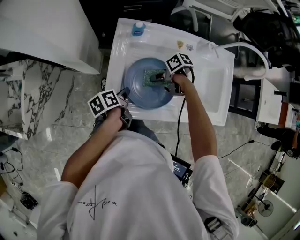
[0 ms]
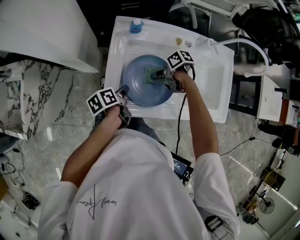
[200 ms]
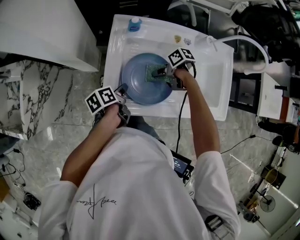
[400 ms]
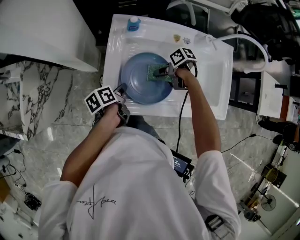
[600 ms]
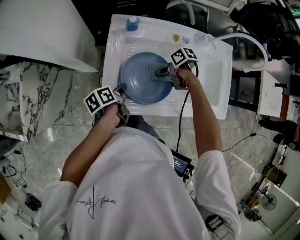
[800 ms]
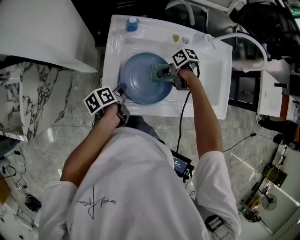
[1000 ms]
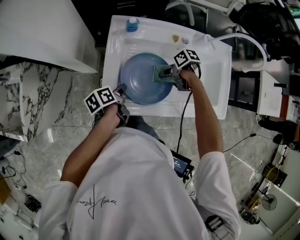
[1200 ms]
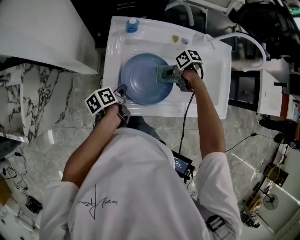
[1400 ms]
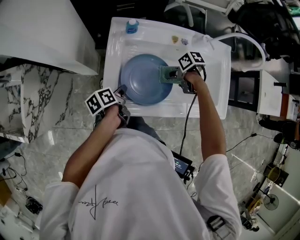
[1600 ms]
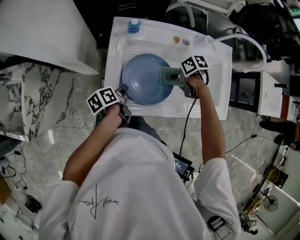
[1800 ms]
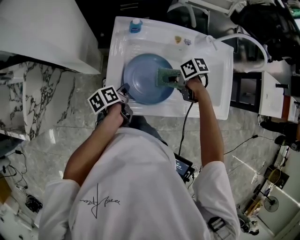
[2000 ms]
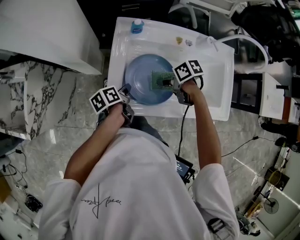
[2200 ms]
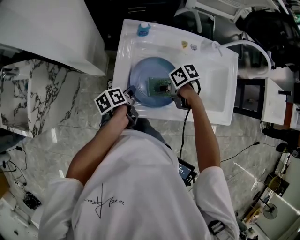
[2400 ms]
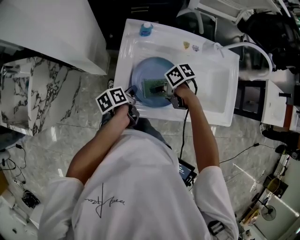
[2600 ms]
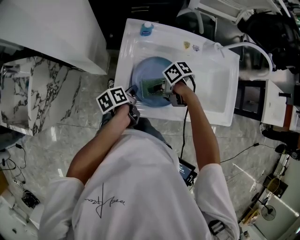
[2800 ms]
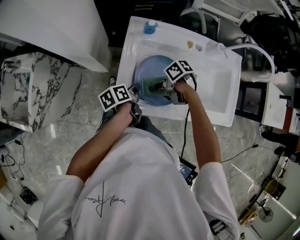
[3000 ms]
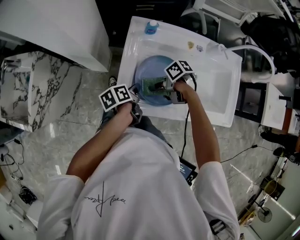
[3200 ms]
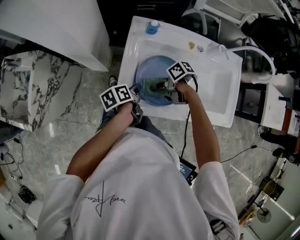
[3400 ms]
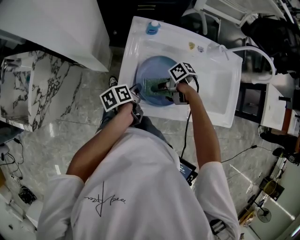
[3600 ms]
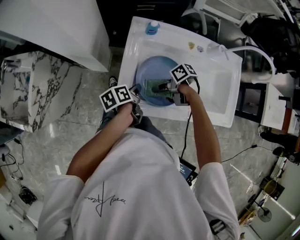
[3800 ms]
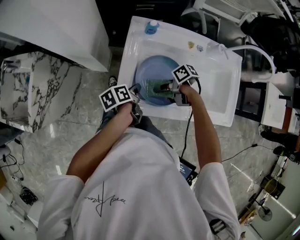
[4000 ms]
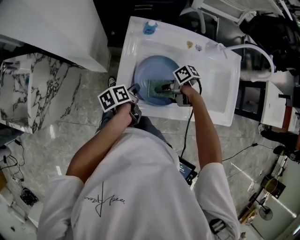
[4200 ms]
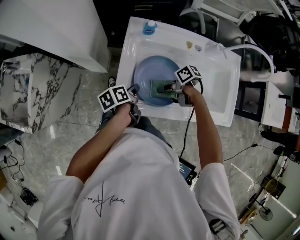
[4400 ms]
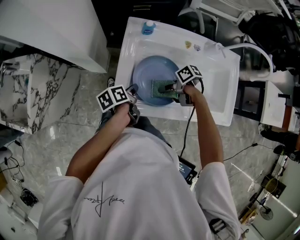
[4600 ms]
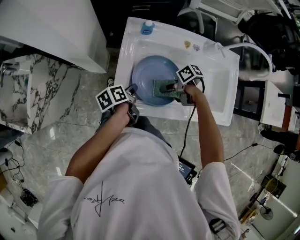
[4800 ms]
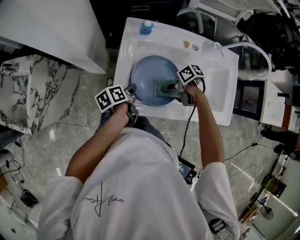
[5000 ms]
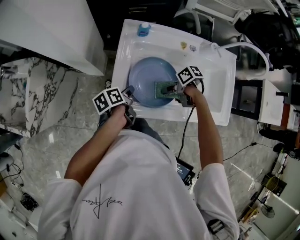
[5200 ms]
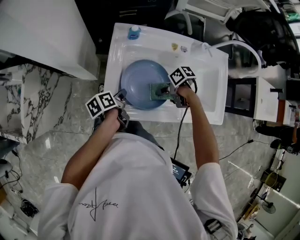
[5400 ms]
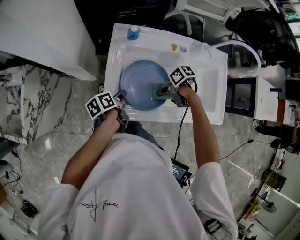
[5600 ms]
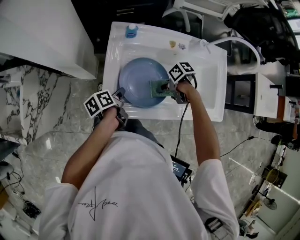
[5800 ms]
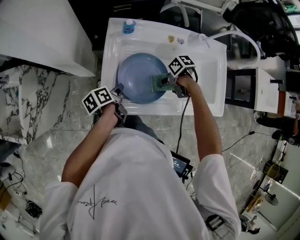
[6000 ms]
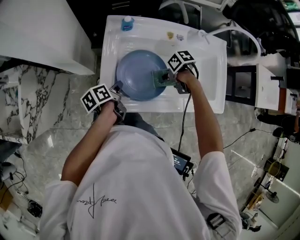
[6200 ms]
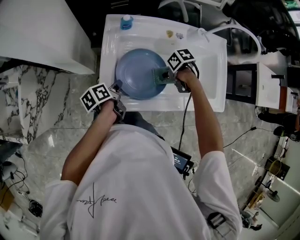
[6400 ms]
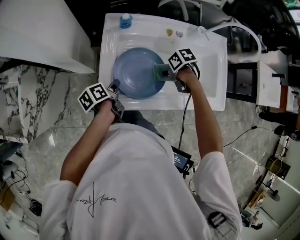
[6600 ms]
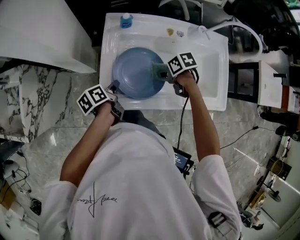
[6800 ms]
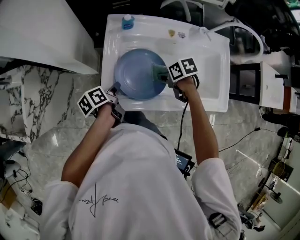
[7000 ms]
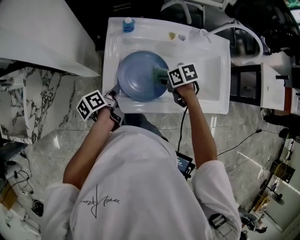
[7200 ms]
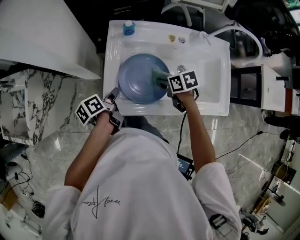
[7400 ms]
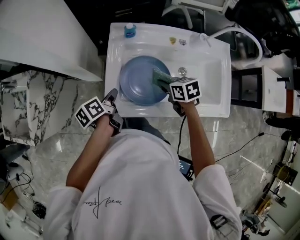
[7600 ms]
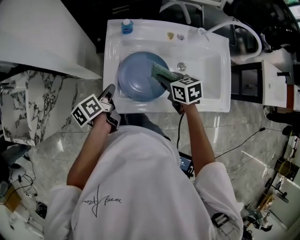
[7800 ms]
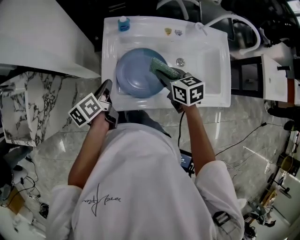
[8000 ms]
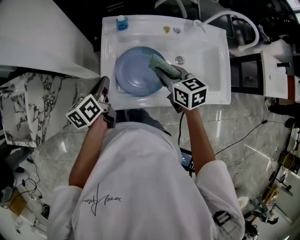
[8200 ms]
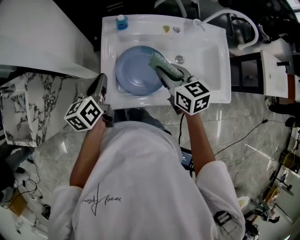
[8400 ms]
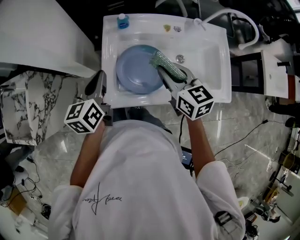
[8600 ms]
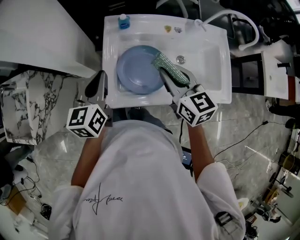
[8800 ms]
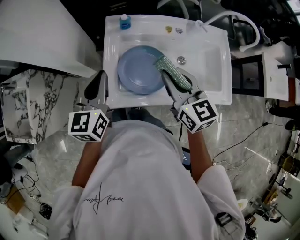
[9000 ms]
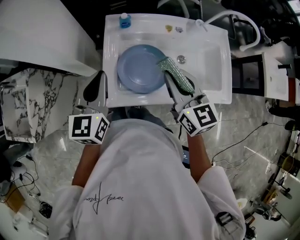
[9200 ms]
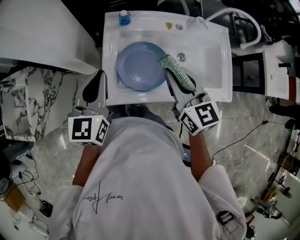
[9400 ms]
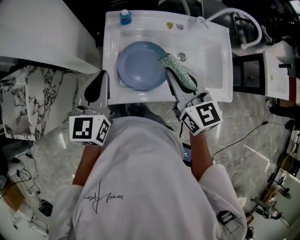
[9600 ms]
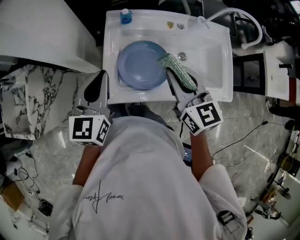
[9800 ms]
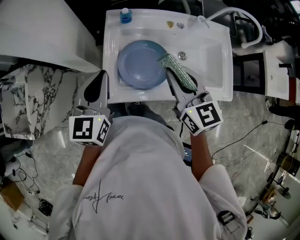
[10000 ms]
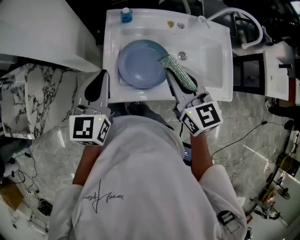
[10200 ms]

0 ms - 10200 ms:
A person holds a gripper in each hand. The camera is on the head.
0 ms - 1400 ms: The right gripper moves roughly 10 cm.
1400 ms - 3000 ms: The right gripper ends up approximately 15 cm from where it was.
3000 ms - 4400 ms: The grippers stay close to where they were, moving slightly.
4400 ms - 5800 ms: The right gripper moves approximately 5 cm.
5800 ms - 7200 ms: The right gripper changes its angle by some 30 degrees.
7200 ms - 8800 ms: Both grippers move upward, roughly 20 cm. The left gripper twists approximately 50 degrees clockwise, seen from behind. The right gripper points its fingers about 40 degrees further upward.
8800 ms - 10200 ms: There are only small adjustments of the grippers.

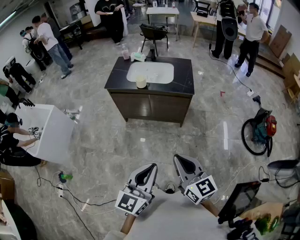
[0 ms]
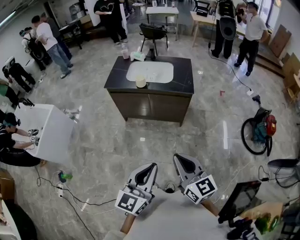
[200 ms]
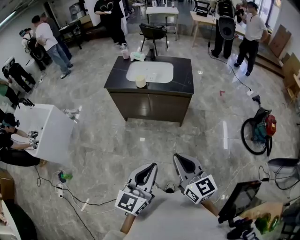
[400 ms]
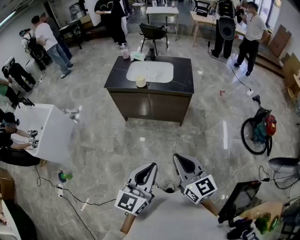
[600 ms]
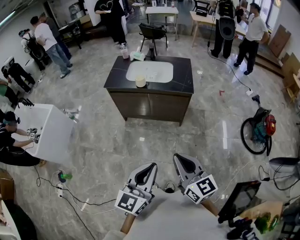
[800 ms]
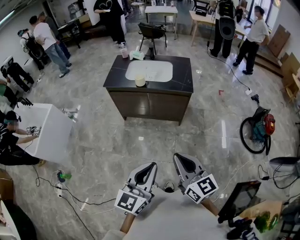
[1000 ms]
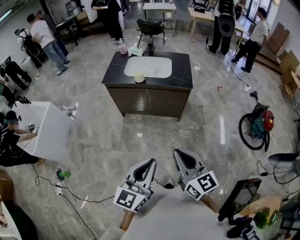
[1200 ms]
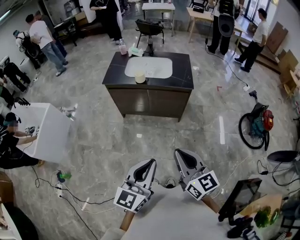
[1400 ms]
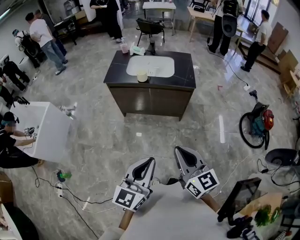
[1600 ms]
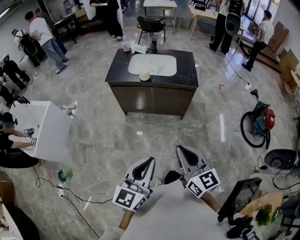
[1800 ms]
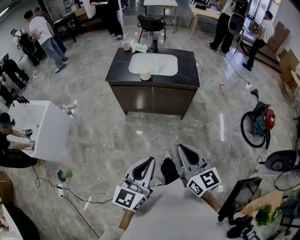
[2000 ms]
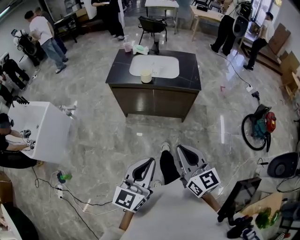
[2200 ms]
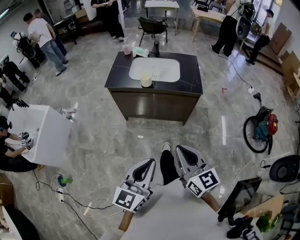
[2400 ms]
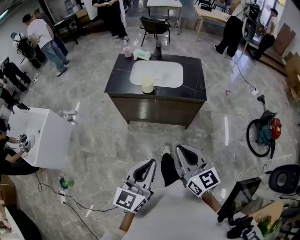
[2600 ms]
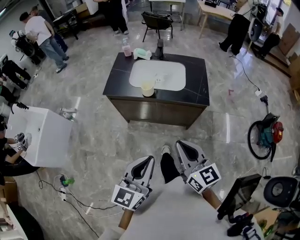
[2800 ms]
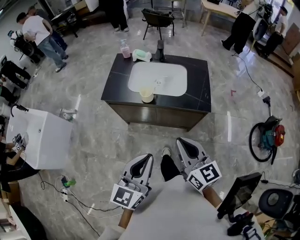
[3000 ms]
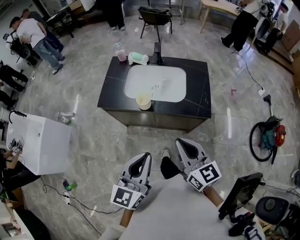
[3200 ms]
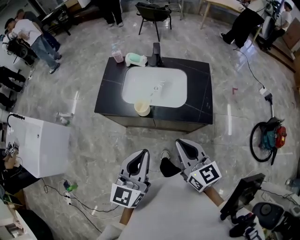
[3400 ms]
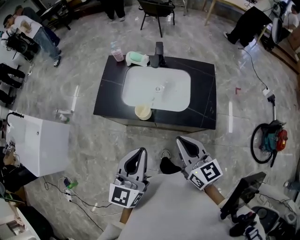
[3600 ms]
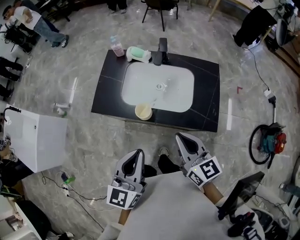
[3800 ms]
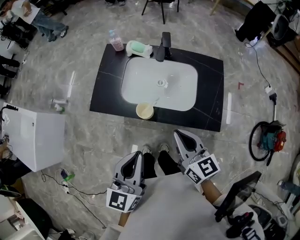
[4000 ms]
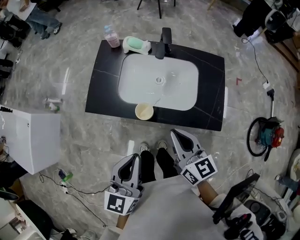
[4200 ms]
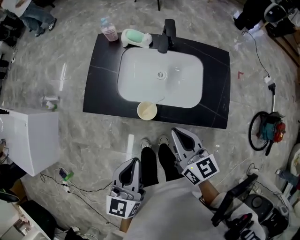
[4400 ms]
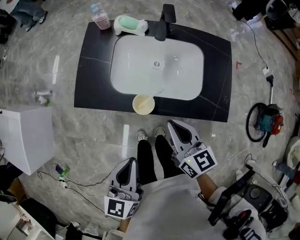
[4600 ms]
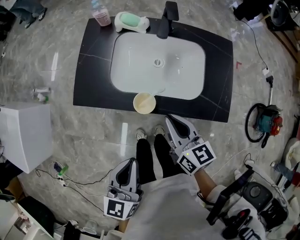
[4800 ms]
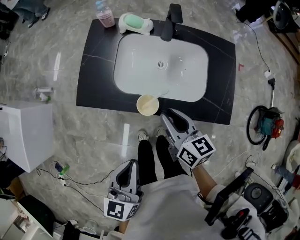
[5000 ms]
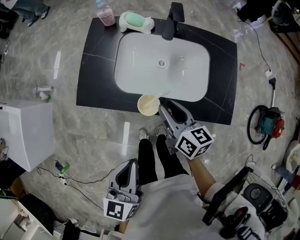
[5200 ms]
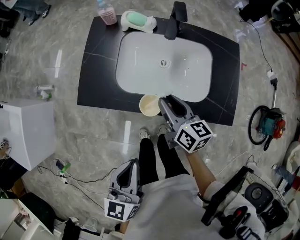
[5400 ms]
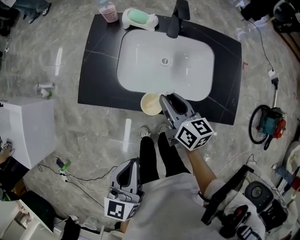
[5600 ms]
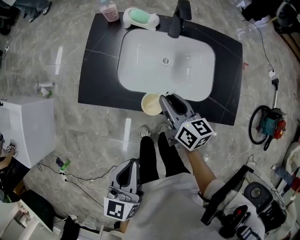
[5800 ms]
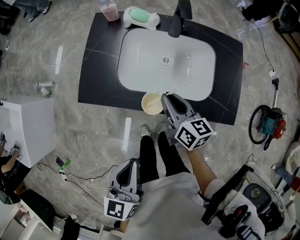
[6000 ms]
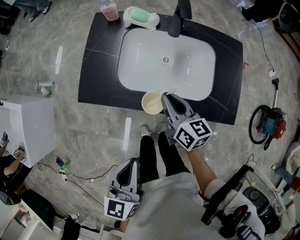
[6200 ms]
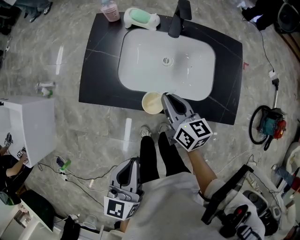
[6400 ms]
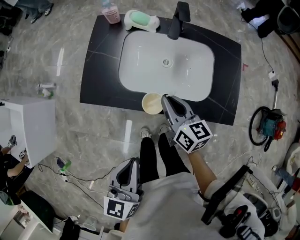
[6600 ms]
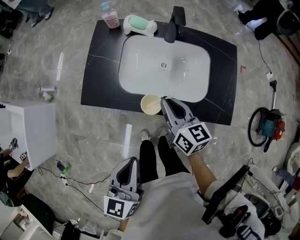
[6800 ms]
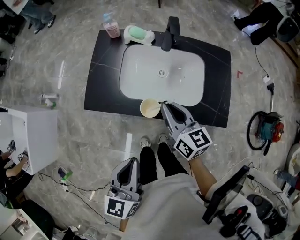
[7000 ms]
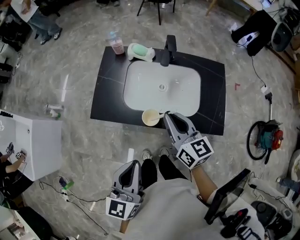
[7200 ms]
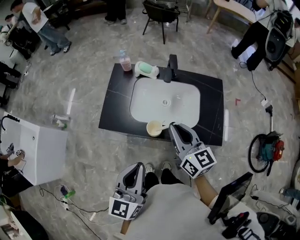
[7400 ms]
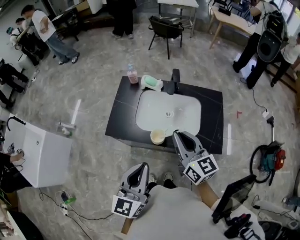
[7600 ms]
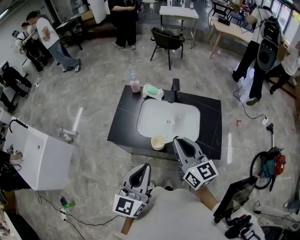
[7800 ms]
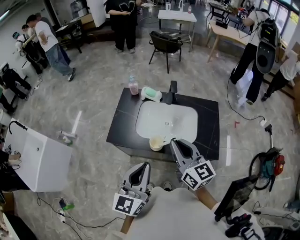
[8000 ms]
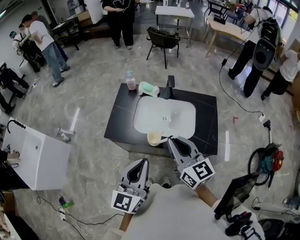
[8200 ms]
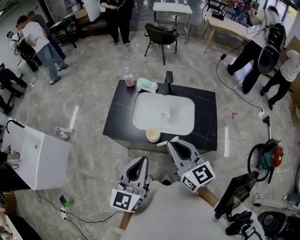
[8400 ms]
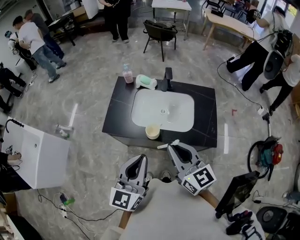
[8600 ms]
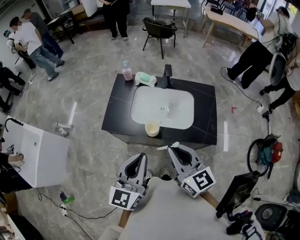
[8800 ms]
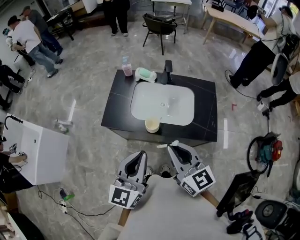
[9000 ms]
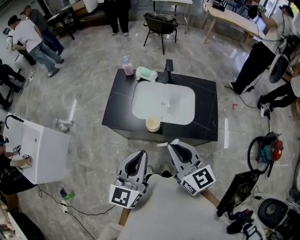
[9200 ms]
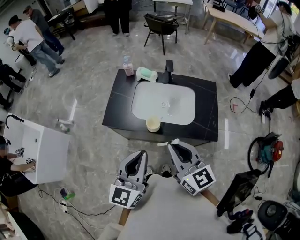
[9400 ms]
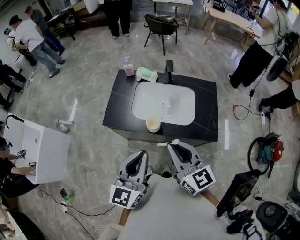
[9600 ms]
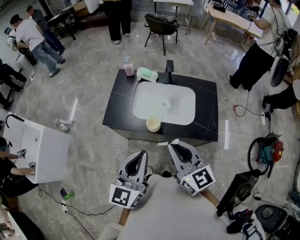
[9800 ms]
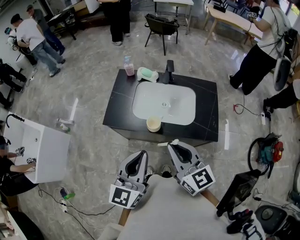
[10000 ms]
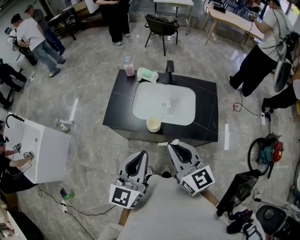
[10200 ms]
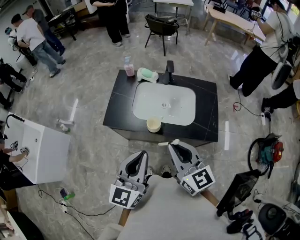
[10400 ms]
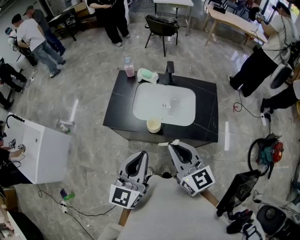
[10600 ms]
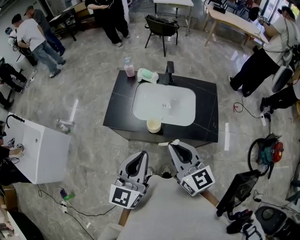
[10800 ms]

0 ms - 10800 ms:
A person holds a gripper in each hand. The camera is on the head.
0 ms - 1600 ms: The grippers stay close to where they were, moving slightly.
1600 ms - 3000 ms: Both grippers travel together forward, roughly 25 cm.
3000 ms - 4600 ms: Both grippers travel together forward and downward, about 25 cm. The left gripper swivels approximately 20 degrees.
4600 ms - 6200 ms: The right gripper goes roughly 10 cm forward and downward, and opens and closes again.
6200 ms - 7800 ms: The right gripper shifts some 20 cm upward, and changes its angle by about 30 degrees. The left gripper travels upward by roughly 10 cm, and turns by approximately 30 degrees.
7800 ms - 9200 ms: The right gripper is displaced backward by about 10 cm.
9200 ms - 10800 ms: Neither gripper changes place.

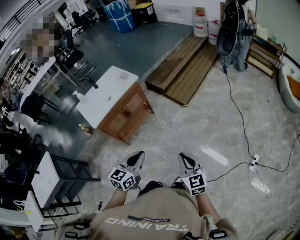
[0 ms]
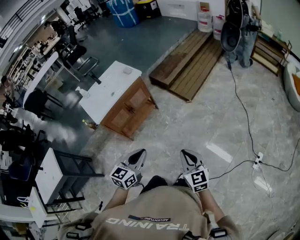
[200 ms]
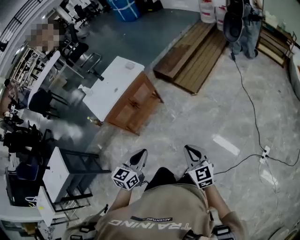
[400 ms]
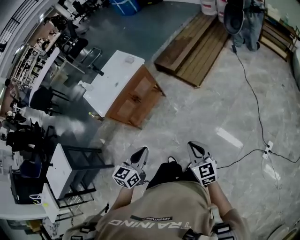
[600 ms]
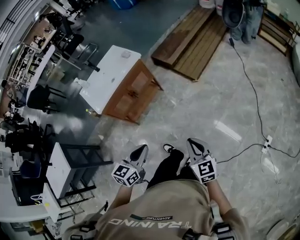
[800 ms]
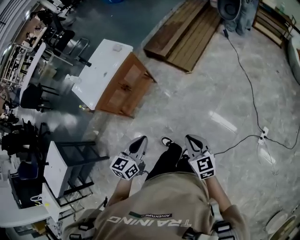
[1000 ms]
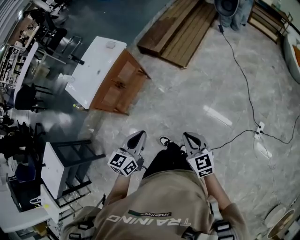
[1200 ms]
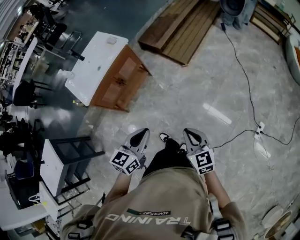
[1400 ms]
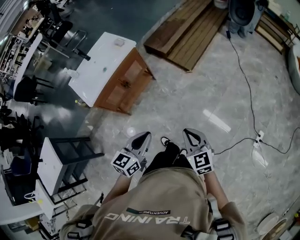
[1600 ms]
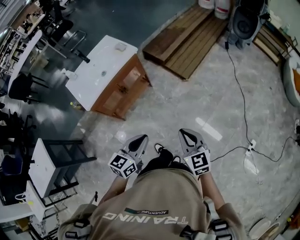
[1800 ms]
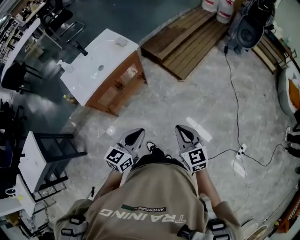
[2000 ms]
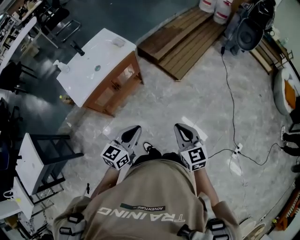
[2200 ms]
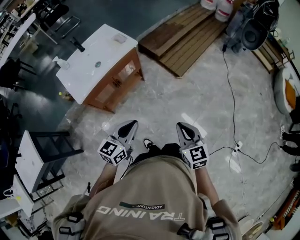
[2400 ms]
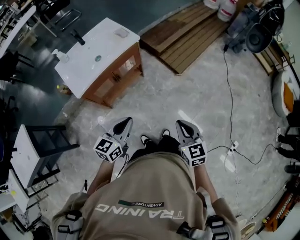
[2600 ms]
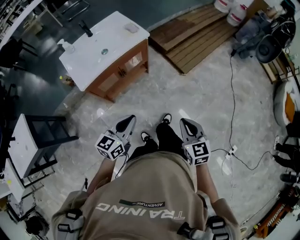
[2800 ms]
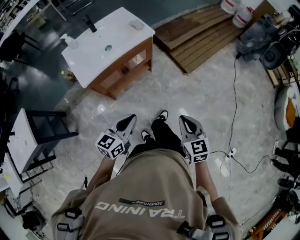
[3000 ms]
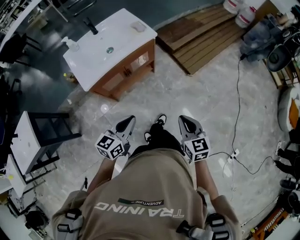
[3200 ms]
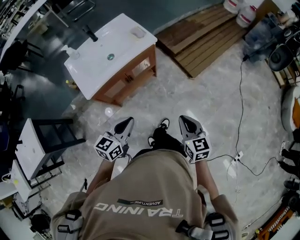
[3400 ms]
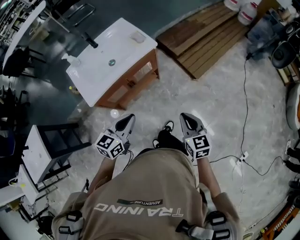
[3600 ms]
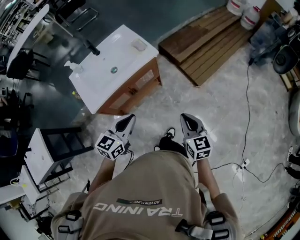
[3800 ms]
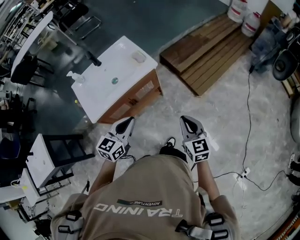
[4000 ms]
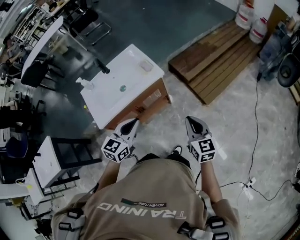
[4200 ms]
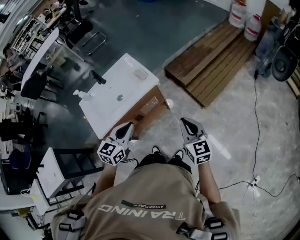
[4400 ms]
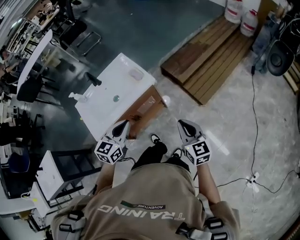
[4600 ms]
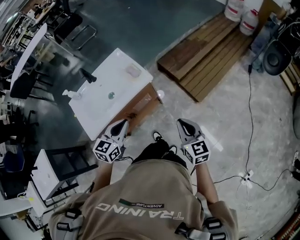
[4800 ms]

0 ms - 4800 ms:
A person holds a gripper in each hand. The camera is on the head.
0 ms - 1600 ms: The two grippers go approximately 5 cm forward.
1600 ms - 3200 ms: The left gripper shifts some 20 cm to the left and forward. The right gripper shifts some 15 cm forward and to the left.
3200 ms - 4800 ms: The two grippers go roughly 25 cm forward.
